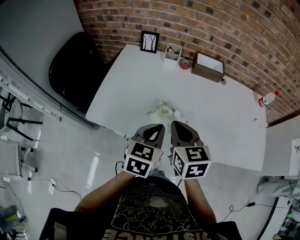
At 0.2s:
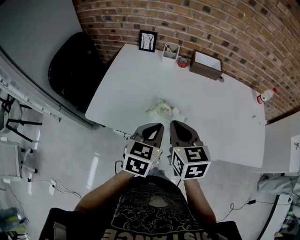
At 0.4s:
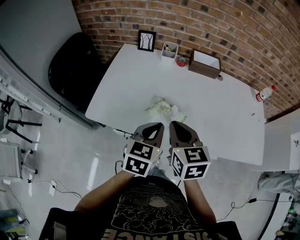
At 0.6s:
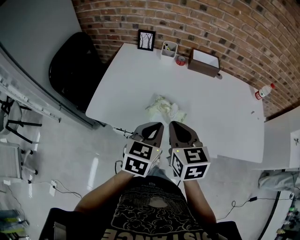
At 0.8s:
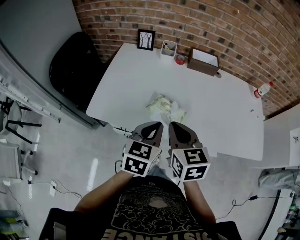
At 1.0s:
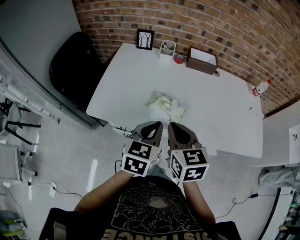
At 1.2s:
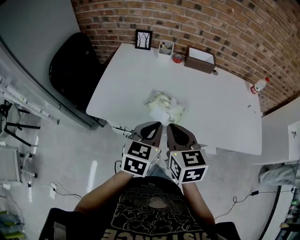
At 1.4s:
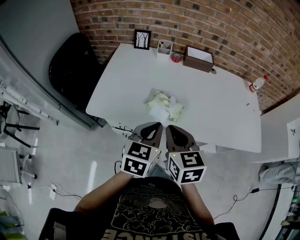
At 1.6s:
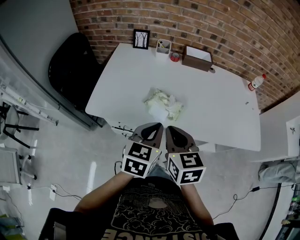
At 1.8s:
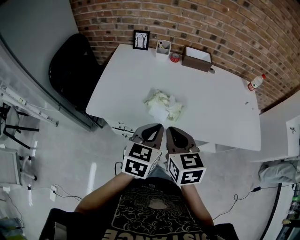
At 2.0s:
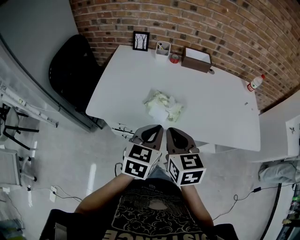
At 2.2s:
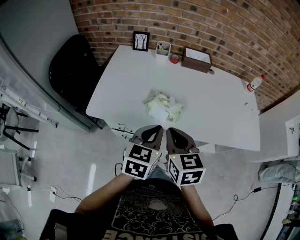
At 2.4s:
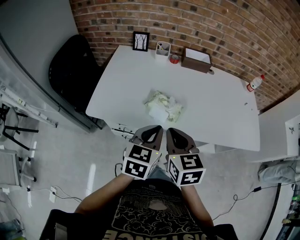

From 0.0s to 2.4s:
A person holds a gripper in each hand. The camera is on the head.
From 0.0s to 1.2s: The grippers both shift backward by approximately 5 cm.
From 1.2s to 2.4s: The grippers stay close to where they were, moving slightly.

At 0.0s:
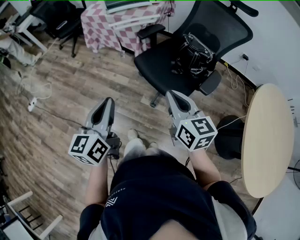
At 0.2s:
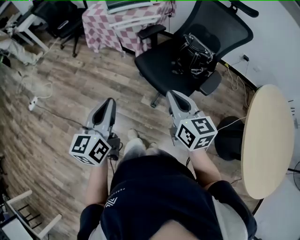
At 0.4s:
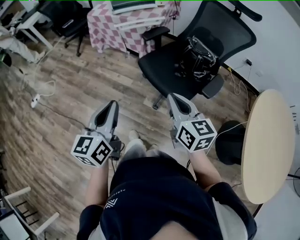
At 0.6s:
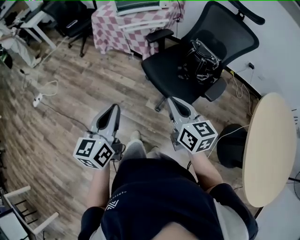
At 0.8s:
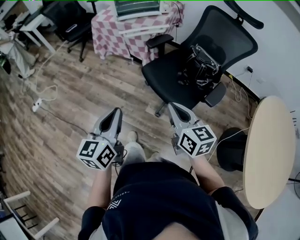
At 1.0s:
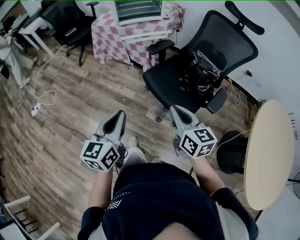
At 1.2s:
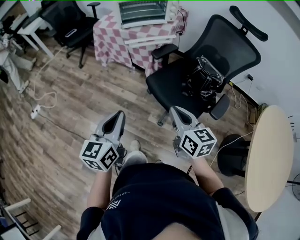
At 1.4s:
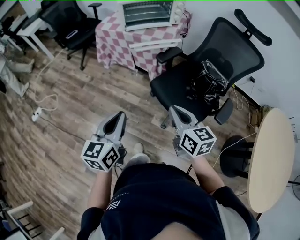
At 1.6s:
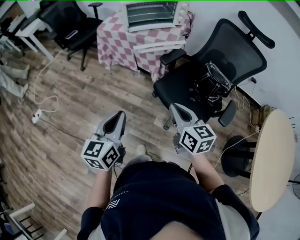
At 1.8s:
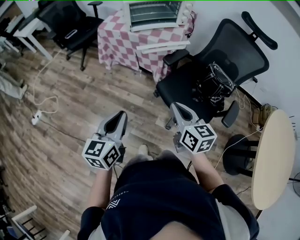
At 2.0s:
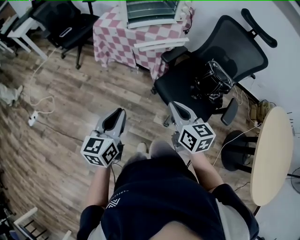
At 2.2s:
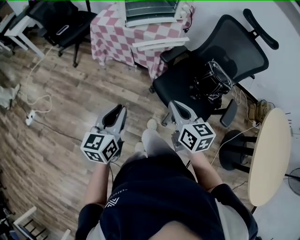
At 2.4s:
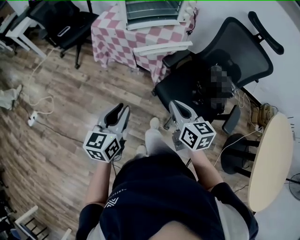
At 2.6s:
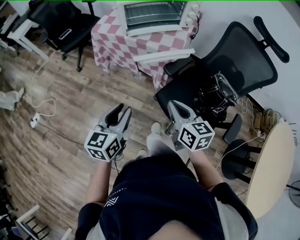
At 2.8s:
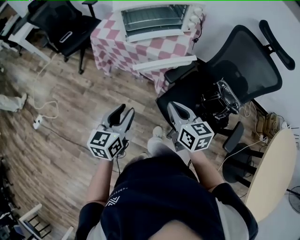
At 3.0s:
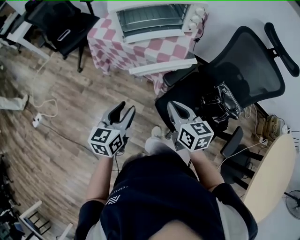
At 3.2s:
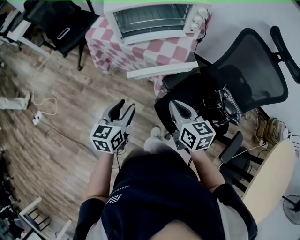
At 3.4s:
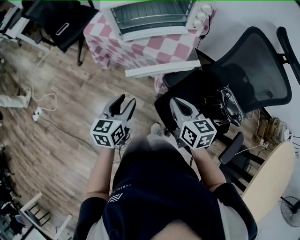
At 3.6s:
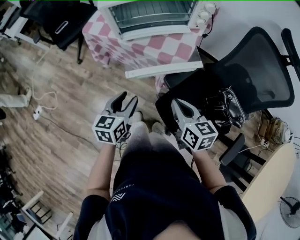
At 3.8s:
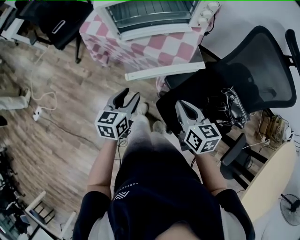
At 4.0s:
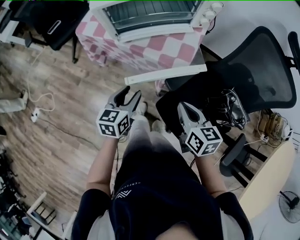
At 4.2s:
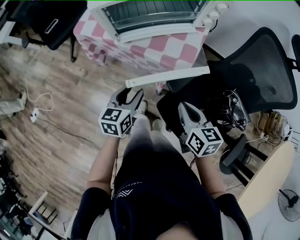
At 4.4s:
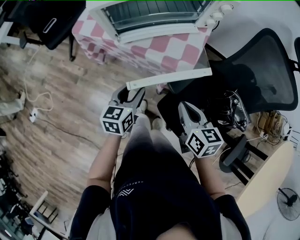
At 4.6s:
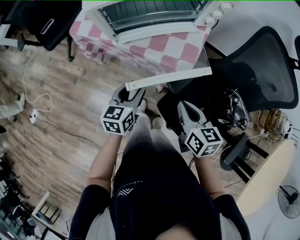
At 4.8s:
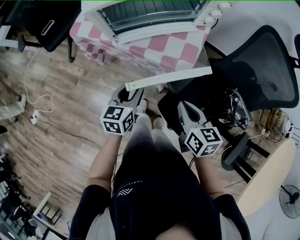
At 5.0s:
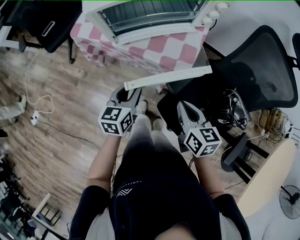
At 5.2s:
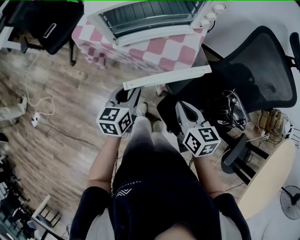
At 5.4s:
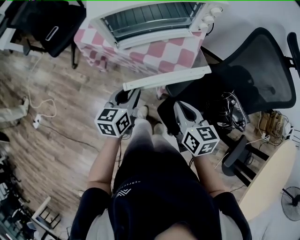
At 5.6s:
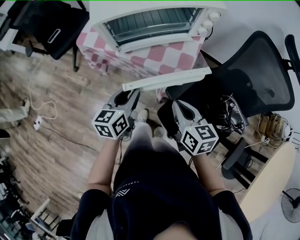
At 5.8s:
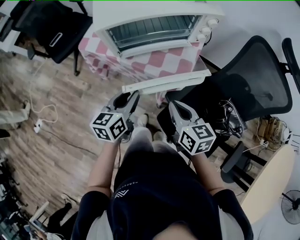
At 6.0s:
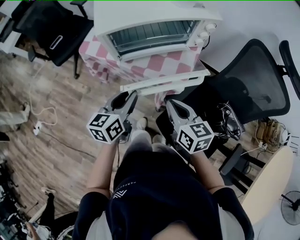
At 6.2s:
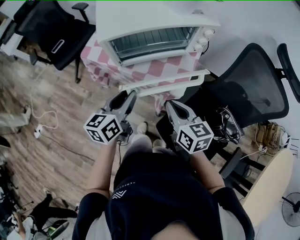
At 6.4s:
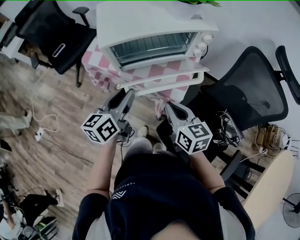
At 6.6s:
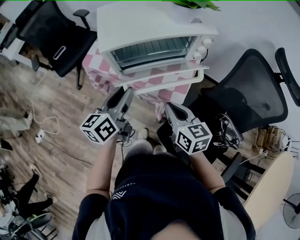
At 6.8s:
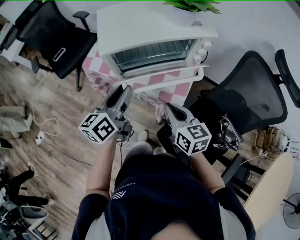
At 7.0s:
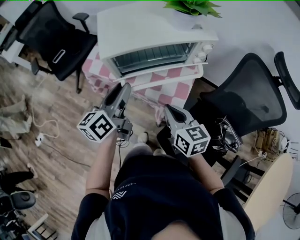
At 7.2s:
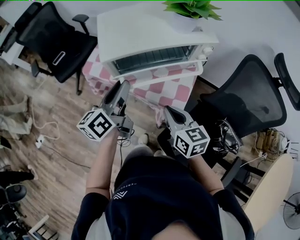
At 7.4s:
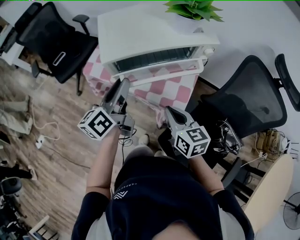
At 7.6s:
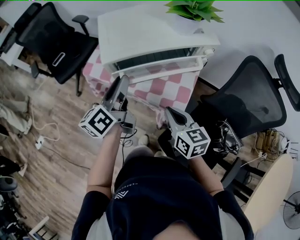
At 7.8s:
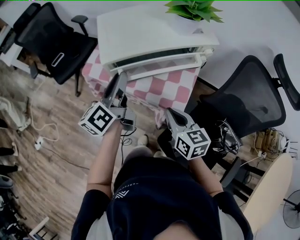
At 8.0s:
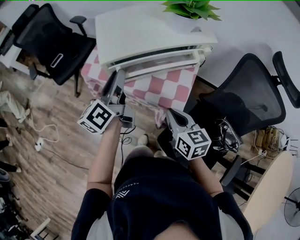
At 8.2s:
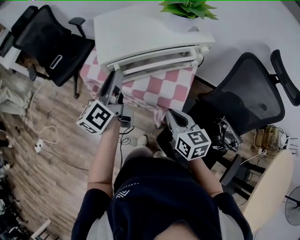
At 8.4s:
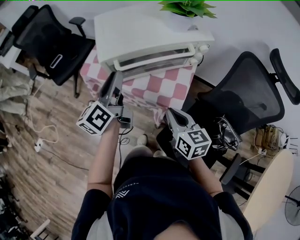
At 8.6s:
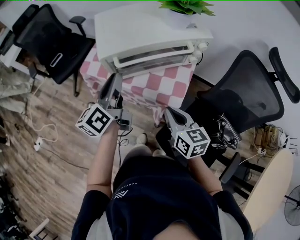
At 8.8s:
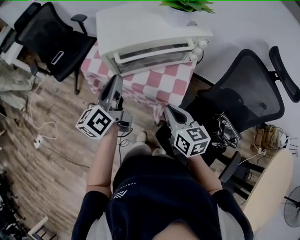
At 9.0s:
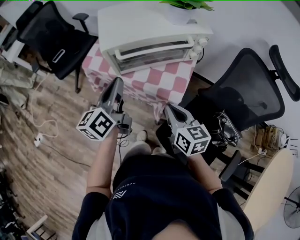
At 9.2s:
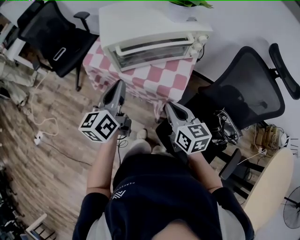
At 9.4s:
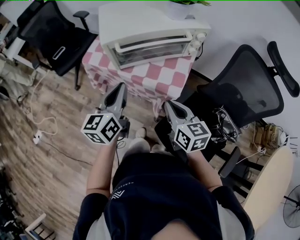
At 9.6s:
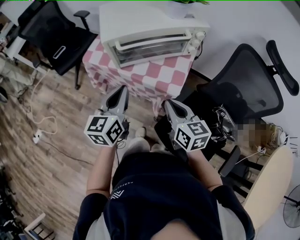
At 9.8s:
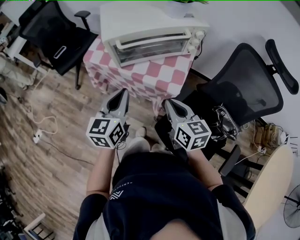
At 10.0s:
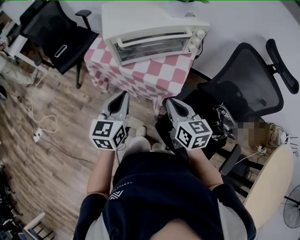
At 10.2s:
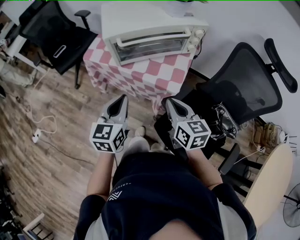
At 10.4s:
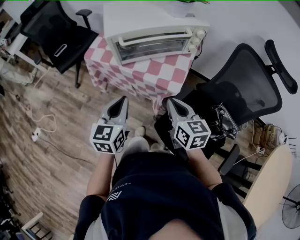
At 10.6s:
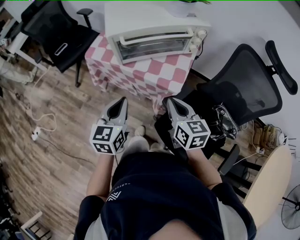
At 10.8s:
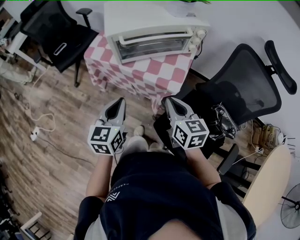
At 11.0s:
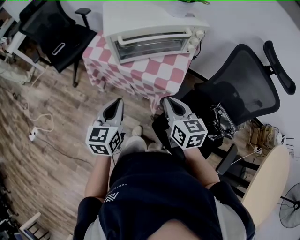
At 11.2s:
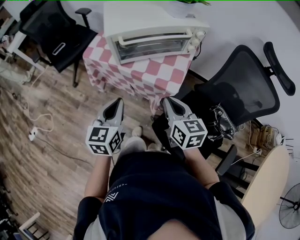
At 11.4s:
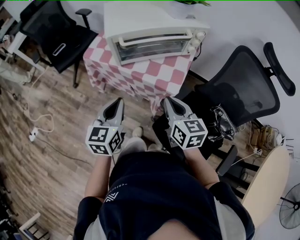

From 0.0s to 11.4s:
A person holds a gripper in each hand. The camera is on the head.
From 0.0s to 1.4s: Both grippers move forward and to the left, roughly 15 cm.
From 1.4s to 2.8s: Both grippers travel together forward, about 20 cm. The left gripper opens.
From 2.8s to 4.2s: The right gripper shifts approximately 15 cm forward and downward. Meanwhile the left gripper is displaced forward and downward by roughly 20 cm.
From 4.2s to 5.6s: The left gripper is displaced upward by approximately 5 cm.
From 5.6s to 7.2s: The right gripper goes approximately 10 cm forward and upward. Meanwhile the left gripper goes some 15 cm upward and forward, and swivels some 30 degrees.
From 7.2s to 8.6s: The grippers move only a little.
From 8.6s to 10.0s: The left gripper goes about 15 cm backward, turns by approximately 40 degrees, and closes.
From 10.0s to 11.4s: There are only small adjustments of the grippers.

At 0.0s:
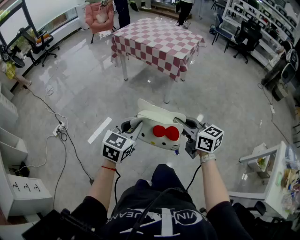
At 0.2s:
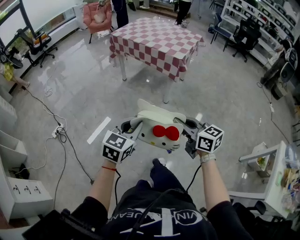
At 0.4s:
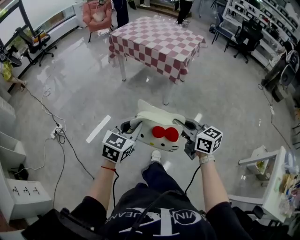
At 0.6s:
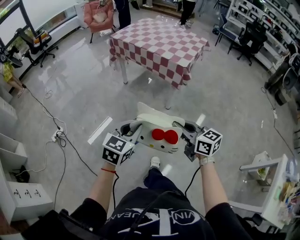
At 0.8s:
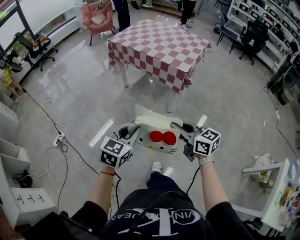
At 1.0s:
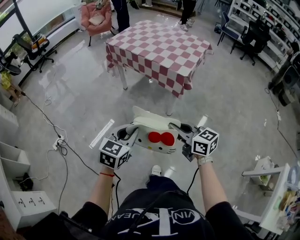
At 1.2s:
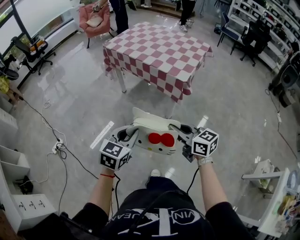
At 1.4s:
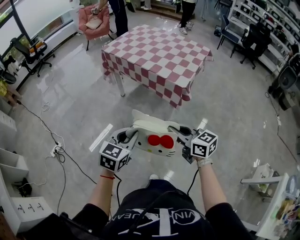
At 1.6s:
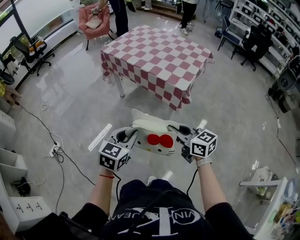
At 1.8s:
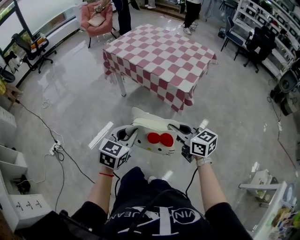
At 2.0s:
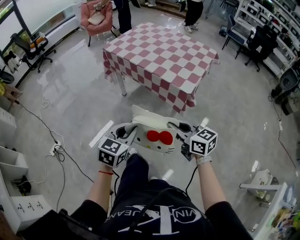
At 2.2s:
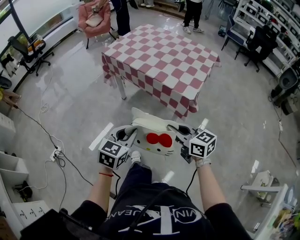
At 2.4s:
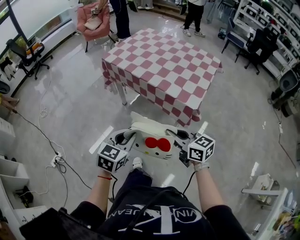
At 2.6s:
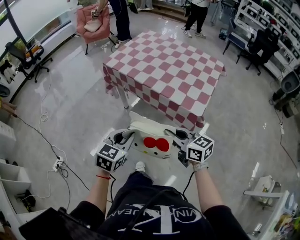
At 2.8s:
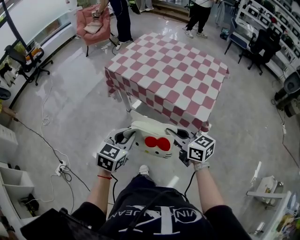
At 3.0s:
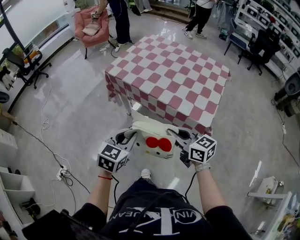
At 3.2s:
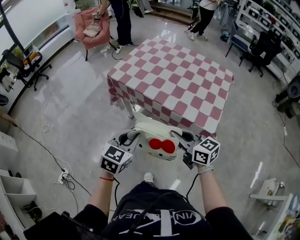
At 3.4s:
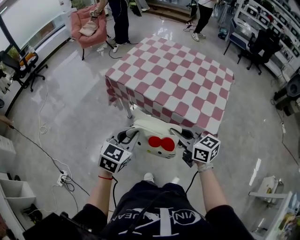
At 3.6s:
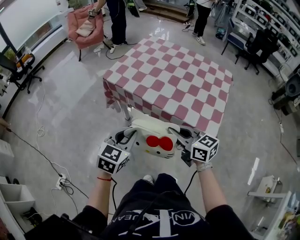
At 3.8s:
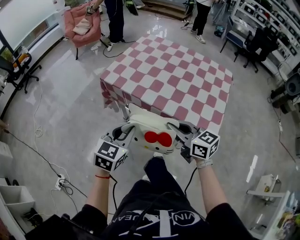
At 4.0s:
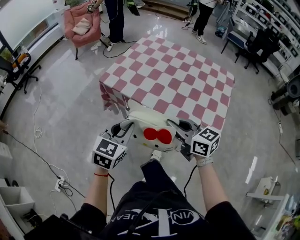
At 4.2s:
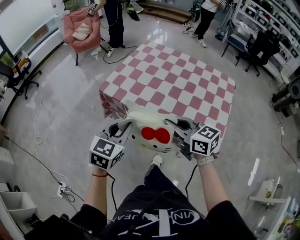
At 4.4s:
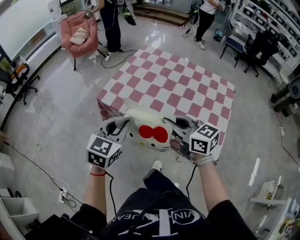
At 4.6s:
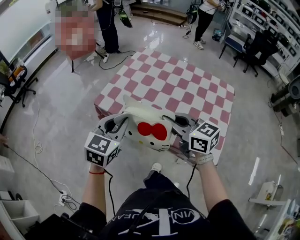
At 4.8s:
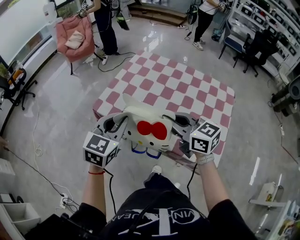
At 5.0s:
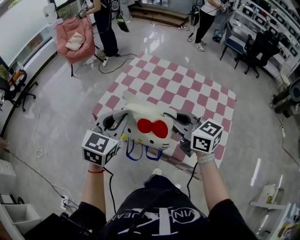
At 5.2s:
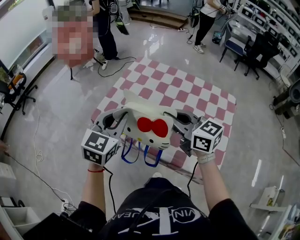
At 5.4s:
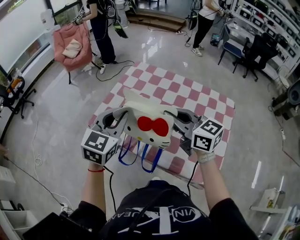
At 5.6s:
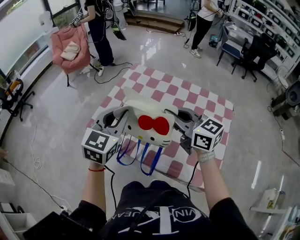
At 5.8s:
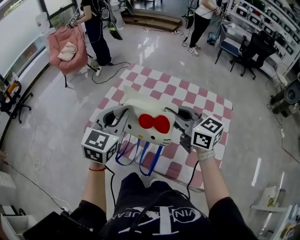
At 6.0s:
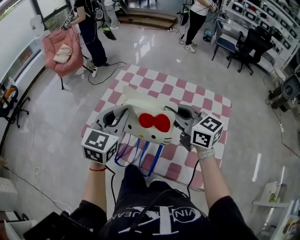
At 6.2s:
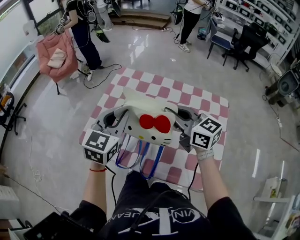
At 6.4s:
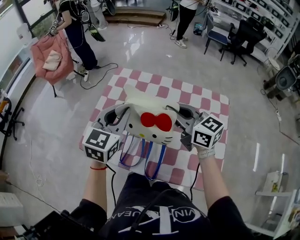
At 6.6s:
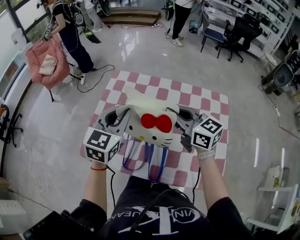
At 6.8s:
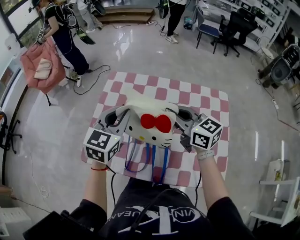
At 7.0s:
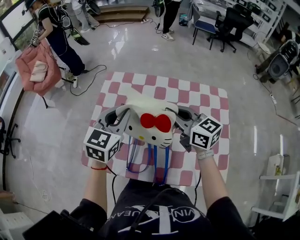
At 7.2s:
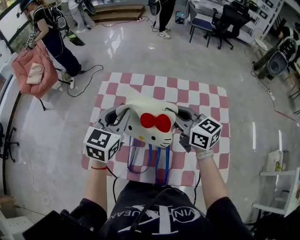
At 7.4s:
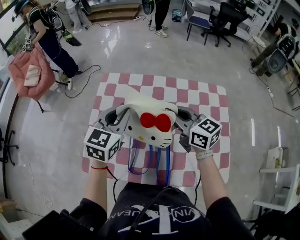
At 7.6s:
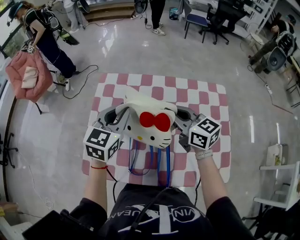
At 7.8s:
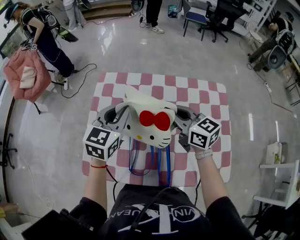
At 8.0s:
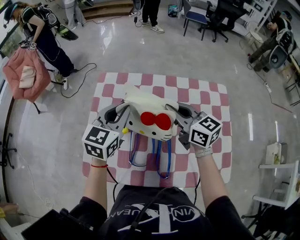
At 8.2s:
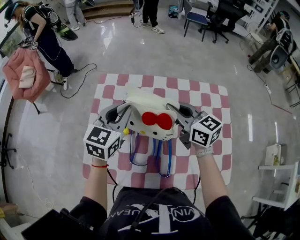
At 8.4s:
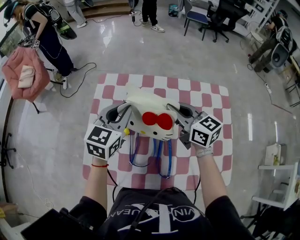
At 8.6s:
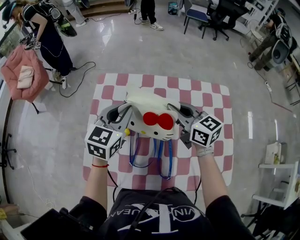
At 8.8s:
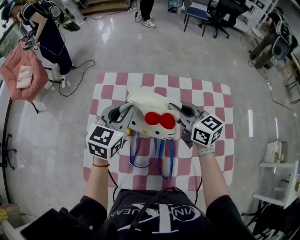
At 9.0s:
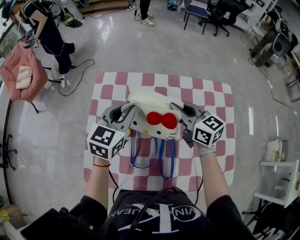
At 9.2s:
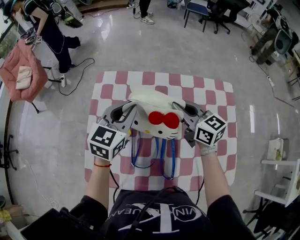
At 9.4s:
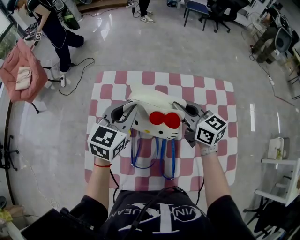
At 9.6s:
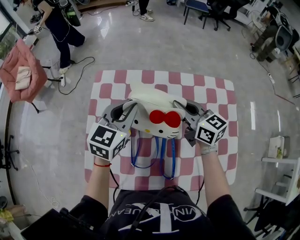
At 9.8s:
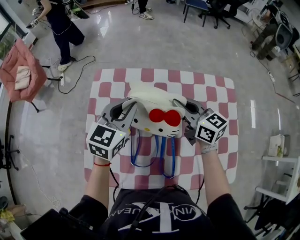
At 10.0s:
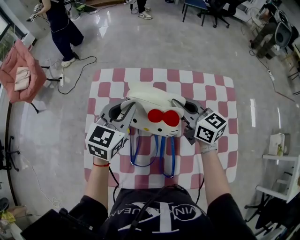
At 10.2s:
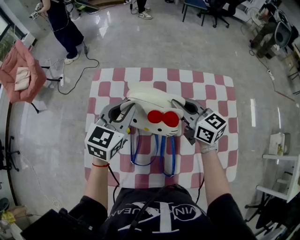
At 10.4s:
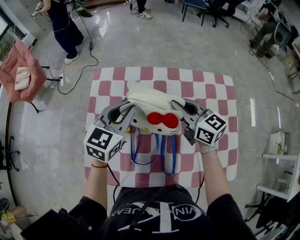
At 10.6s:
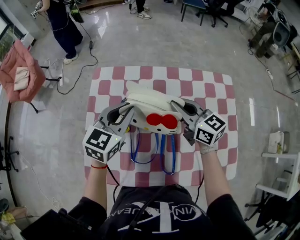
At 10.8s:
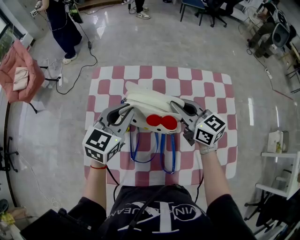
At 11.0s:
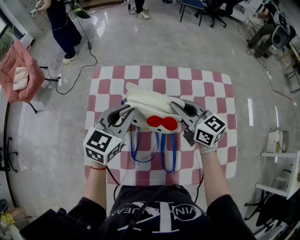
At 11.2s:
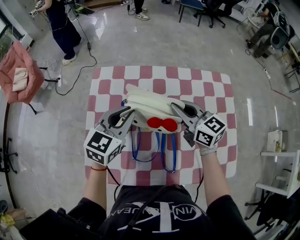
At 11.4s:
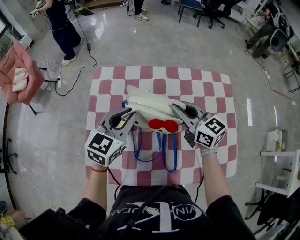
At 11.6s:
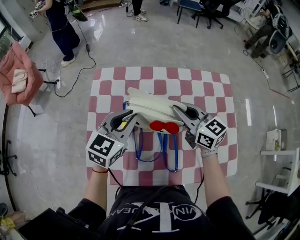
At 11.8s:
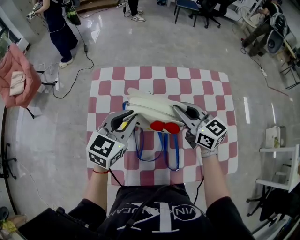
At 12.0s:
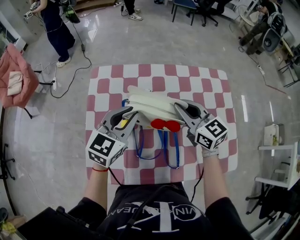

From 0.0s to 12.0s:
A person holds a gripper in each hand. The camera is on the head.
From 0.0s to 1.6s: Both grippers travel together forward, roughly 30 cm.
From 1.6s to 3.0s: The two grippers go approximately 25 cm forward.
From 3.0s to 4.4s: The two grippers go some 25 cm forward.
From 4.4s to 6.0s: Both grippers move forward and to the right, about 25 cm.
From 6.0s to 7.6s: The right gripper travels forward and downward by approximately 15 cm, and changes its angle by some 20 degrees. Meanwhile the left gripper goes approximately 15 cm forward.
From 7.6s to 9.0s: The right gripper ends up about 5 cm from where it was. The left gripper ends up approximately 5 cm from where it was.
From 9.0s to 12.0s: The grippers stay close to where they were, moving slightly.
